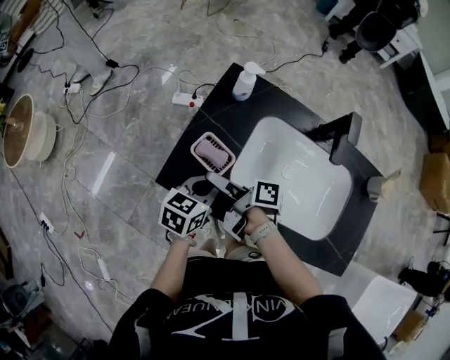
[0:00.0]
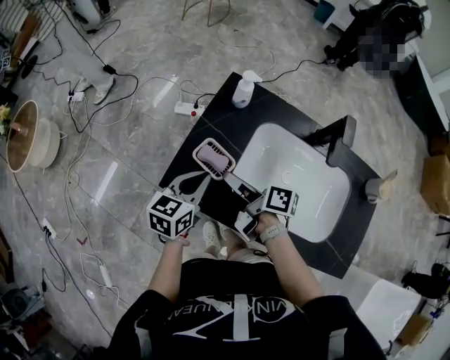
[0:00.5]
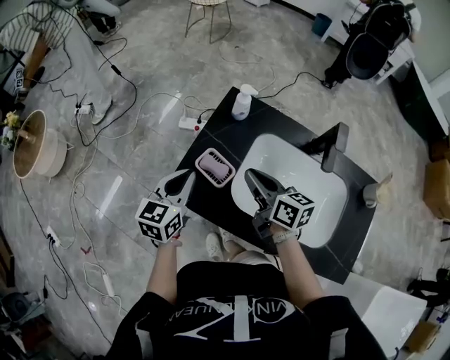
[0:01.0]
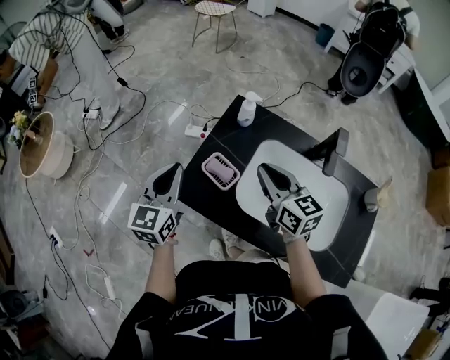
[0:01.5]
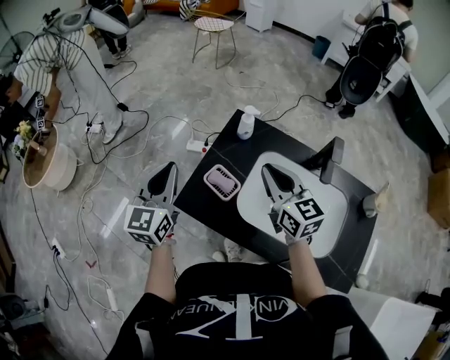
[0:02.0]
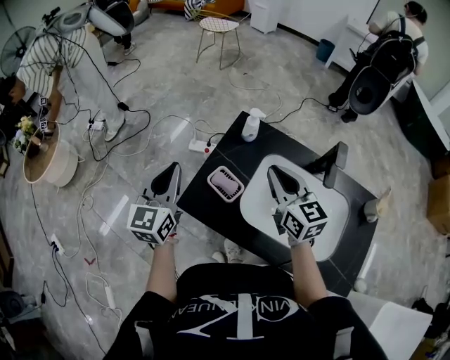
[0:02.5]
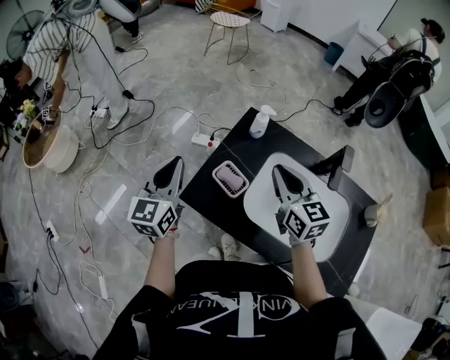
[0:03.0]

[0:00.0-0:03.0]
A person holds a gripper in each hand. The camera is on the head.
0:00.0 to 0:01.5: The right gripper moves upward and to the right, approximately 20 cm, twists approximately 80 degrees counterclockwise, seen from behind, and closes; the left gripper is displaced upward and to the left by approximately 20 cm, and rotates roughly 40 degrees.
0:01.5 to 0:03.0: The left gripper shifts by roughly 5 cm.

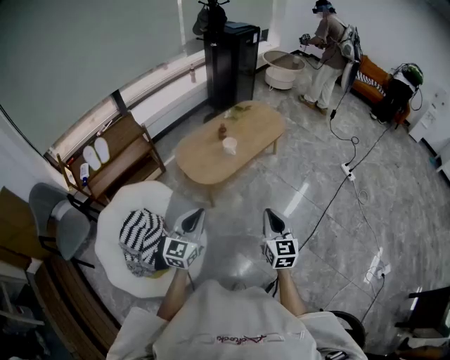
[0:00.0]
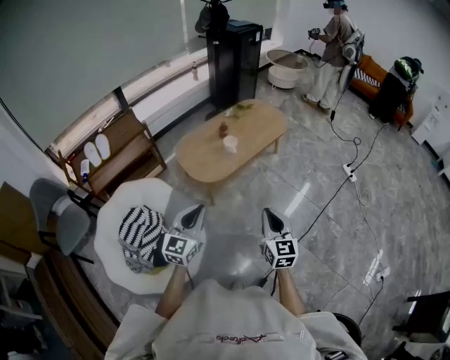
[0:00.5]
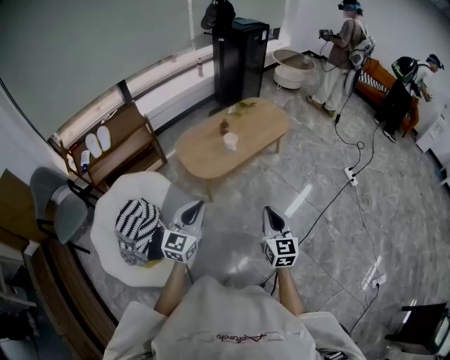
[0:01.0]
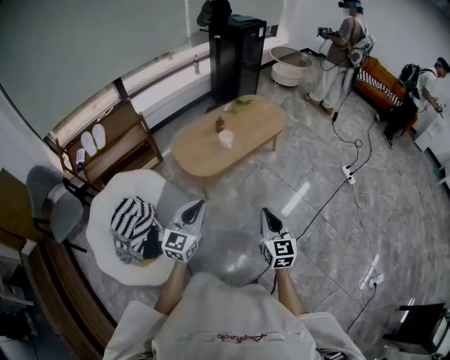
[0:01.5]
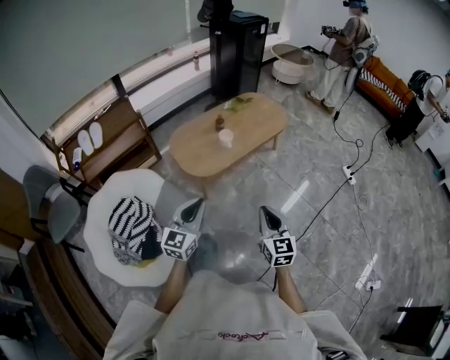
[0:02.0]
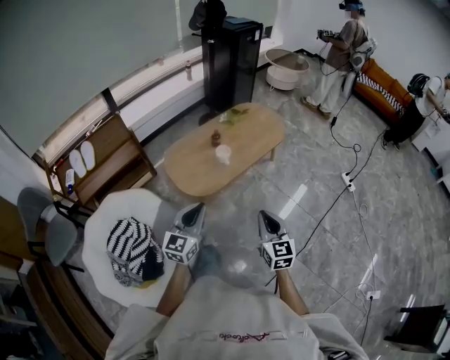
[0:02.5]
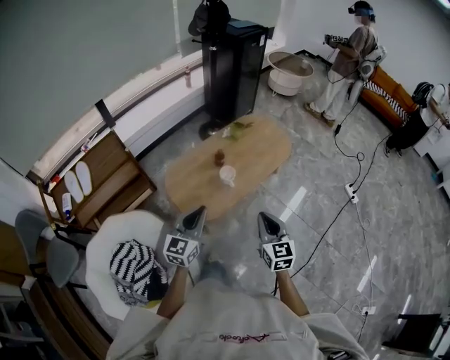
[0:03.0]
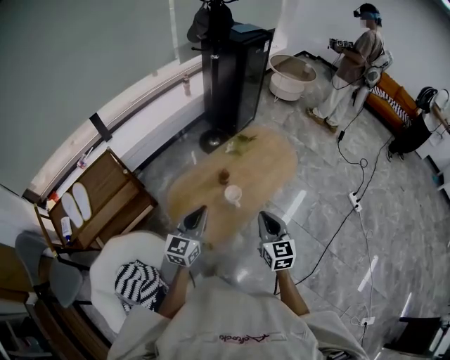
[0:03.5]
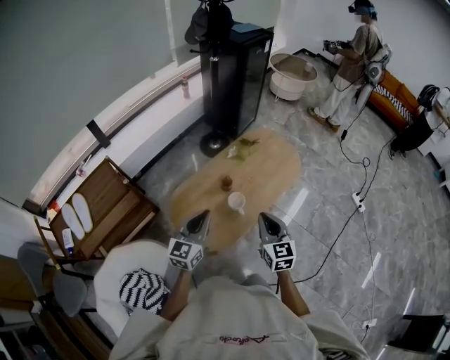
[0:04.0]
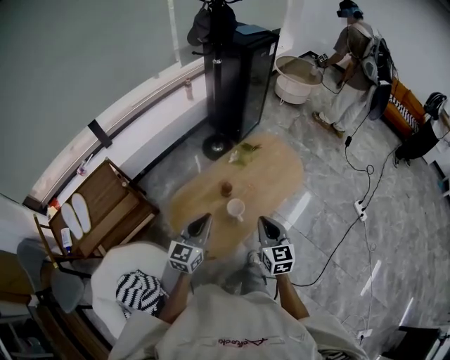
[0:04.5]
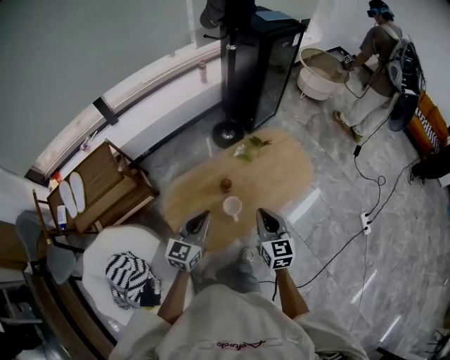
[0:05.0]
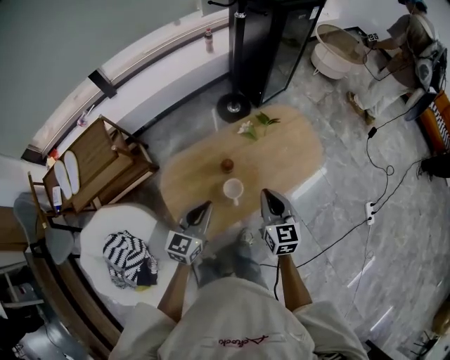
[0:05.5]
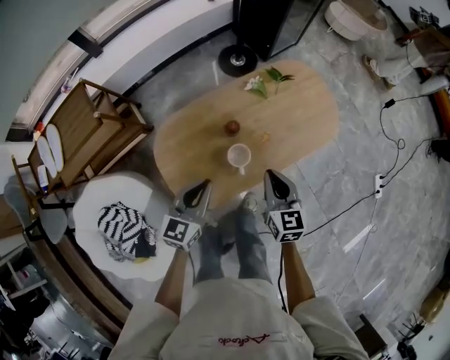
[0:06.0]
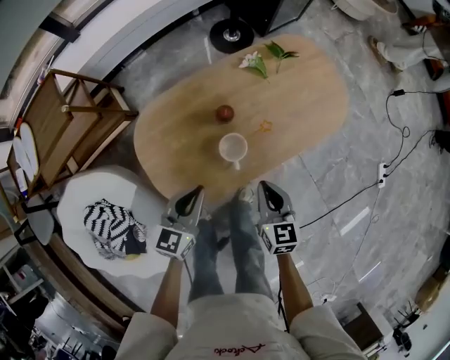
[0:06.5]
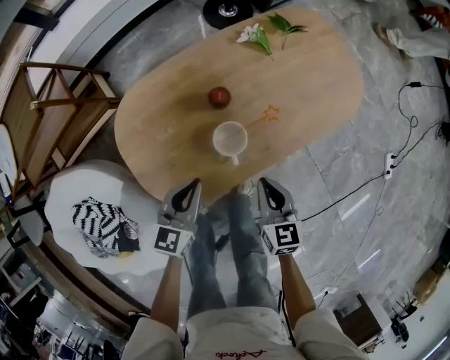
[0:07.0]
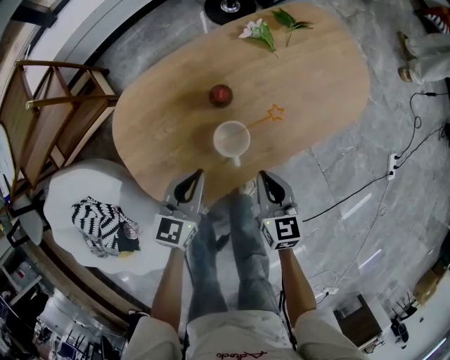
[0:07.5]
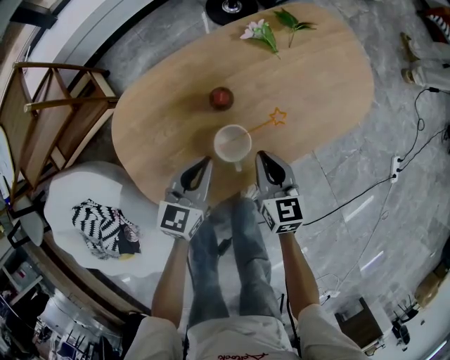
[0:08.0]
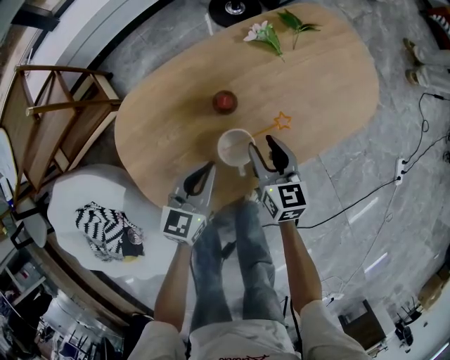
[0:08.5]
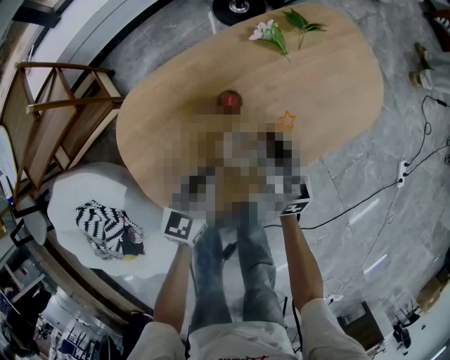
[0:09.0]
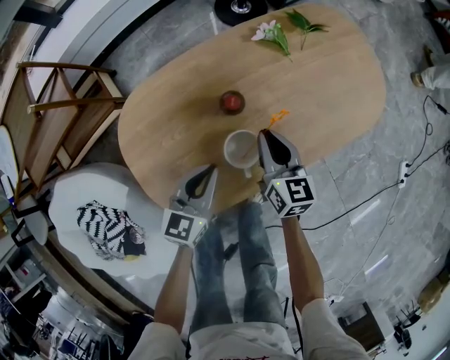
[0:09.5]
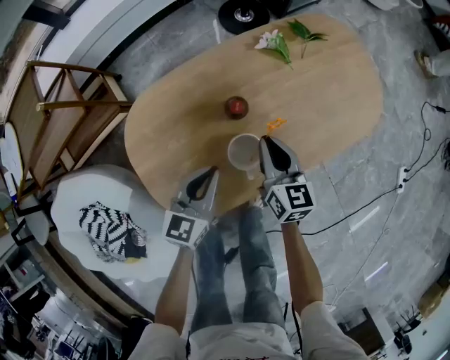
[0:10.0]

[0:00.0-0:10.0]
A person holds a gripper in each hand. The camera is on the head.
0:00.0 to 0:02.0: Both grippers travel together to the right, about 5 cm.
0:02.0 to 0:04.0: Both grippers are carried forward, approximately 50 cm.
0:04.0 to 0:06.0: The left gripper travels downward and forward by approximately 20 cm; the right gripper shifts roughly 25 cm forward and downward.
0:06.0 to 0:08.0: The grippers both shift downward by roughly 30 cm.
0:08.0 to 0:10.0: The right gripper travels forward by about 5 cm, and opens, then closes again.

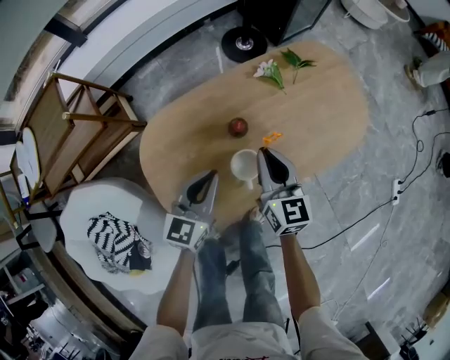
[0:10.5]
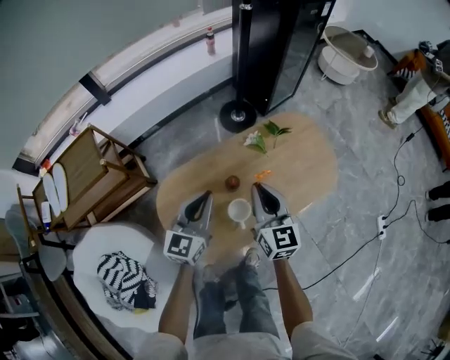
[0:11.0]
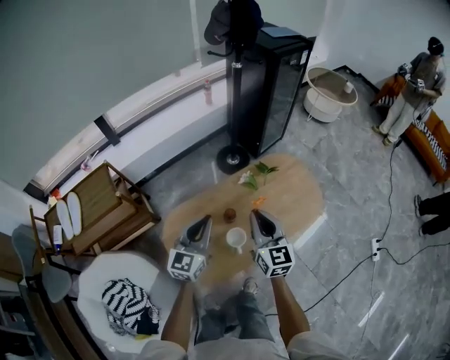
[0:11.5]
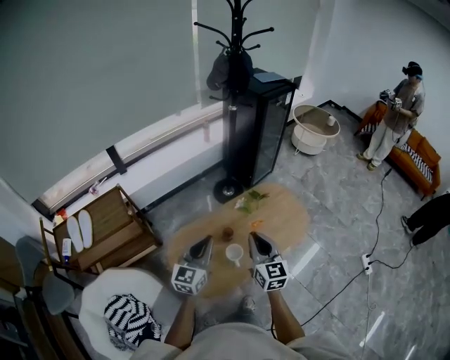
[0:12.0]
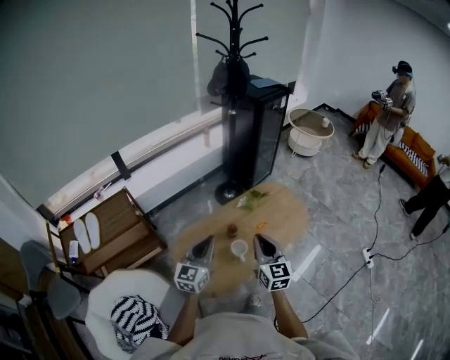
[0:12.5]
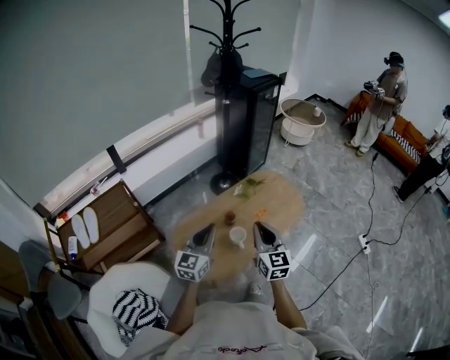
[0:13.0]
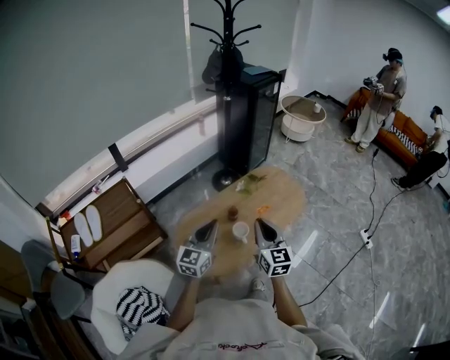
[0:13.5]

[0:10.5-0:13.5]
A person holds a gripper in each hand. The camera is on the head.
0:10.5 to 0:12.0: The left gripper moves upward, some 40 cm. Meanwhile the right gripper moves upward and backward, roughly 40 cm.
0:12.0 to 0:13.5: Both grippers move backward, about 10 cm.

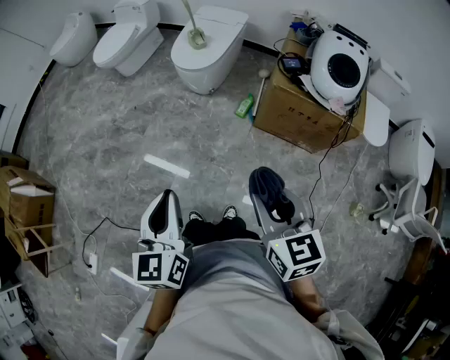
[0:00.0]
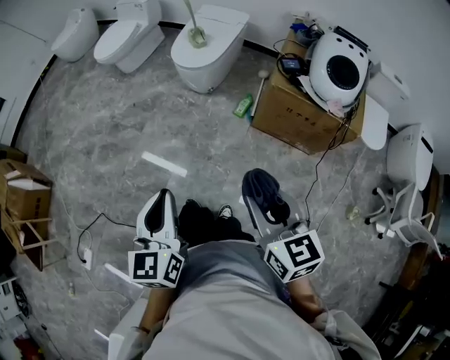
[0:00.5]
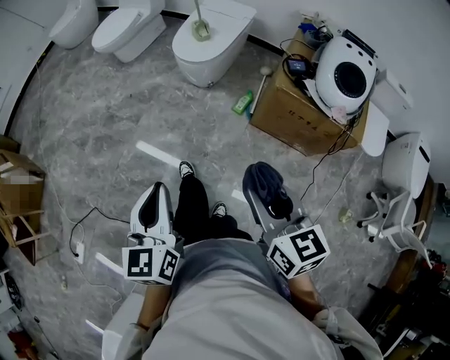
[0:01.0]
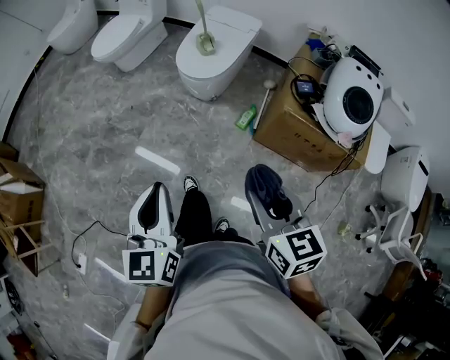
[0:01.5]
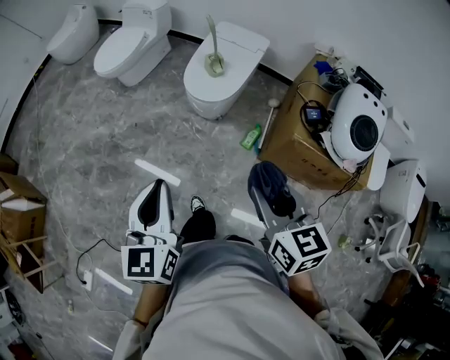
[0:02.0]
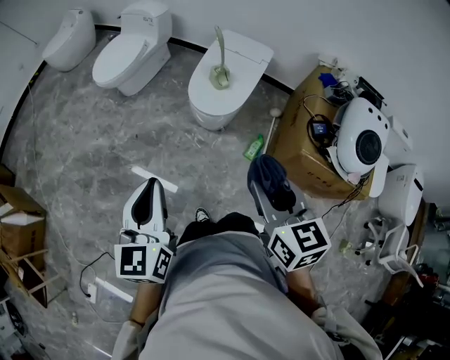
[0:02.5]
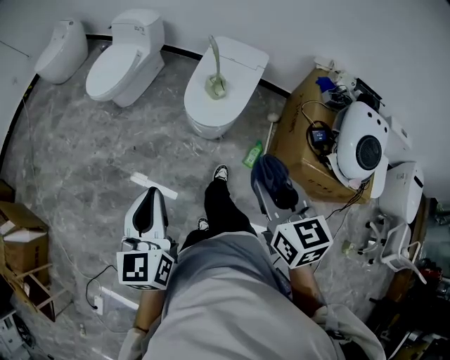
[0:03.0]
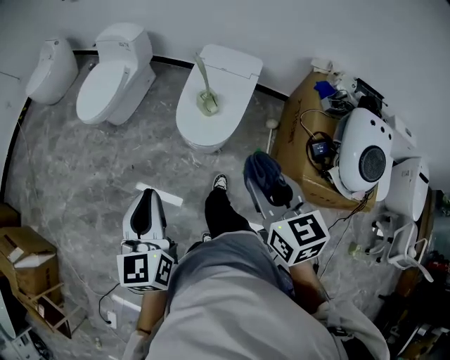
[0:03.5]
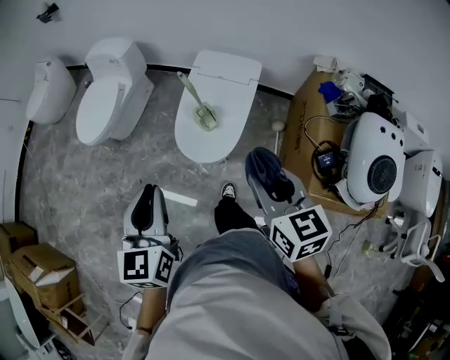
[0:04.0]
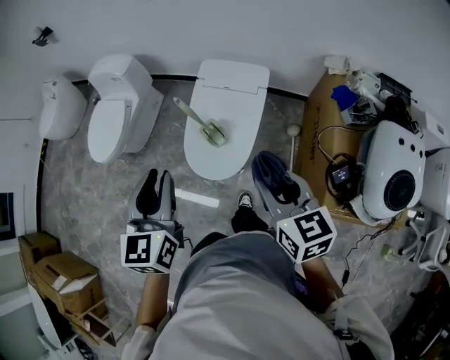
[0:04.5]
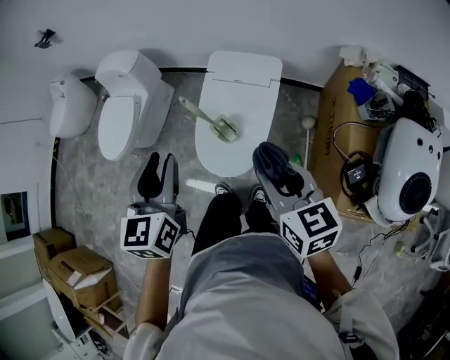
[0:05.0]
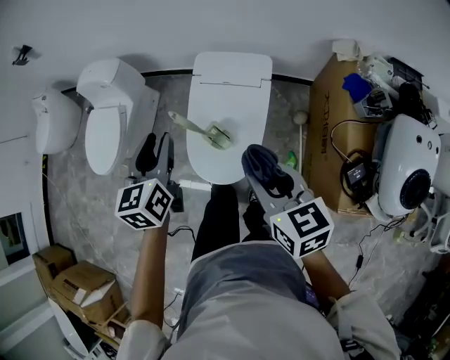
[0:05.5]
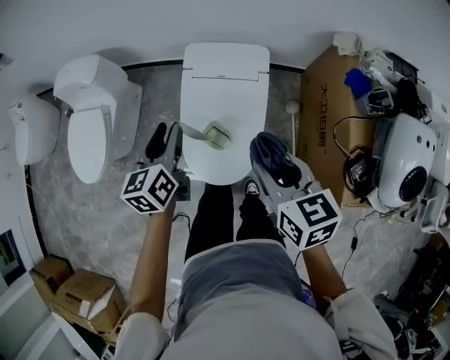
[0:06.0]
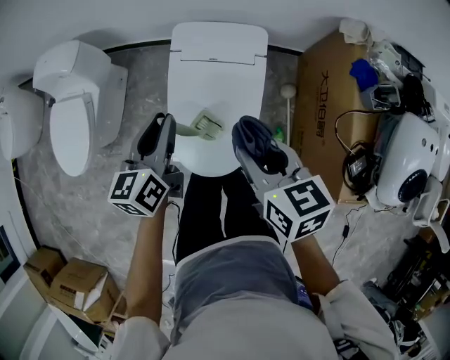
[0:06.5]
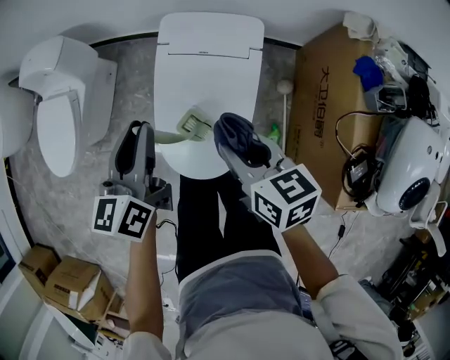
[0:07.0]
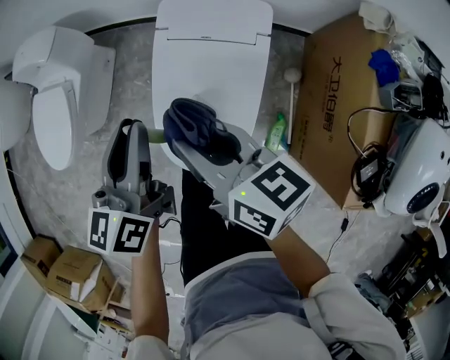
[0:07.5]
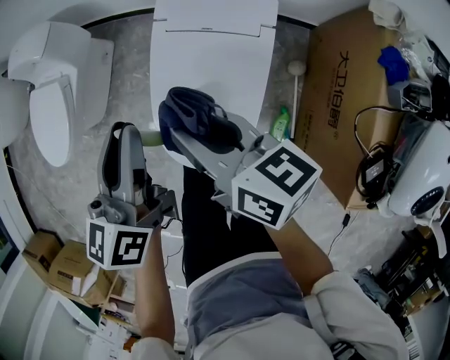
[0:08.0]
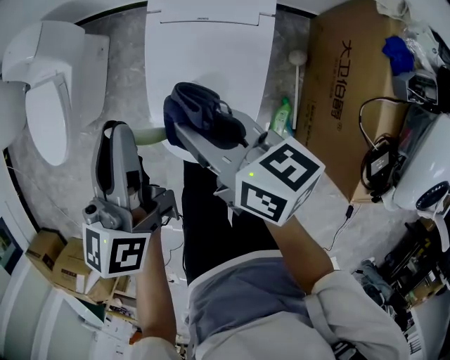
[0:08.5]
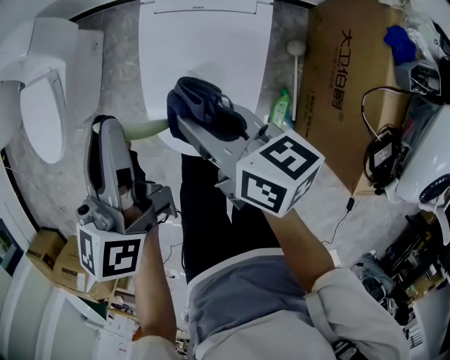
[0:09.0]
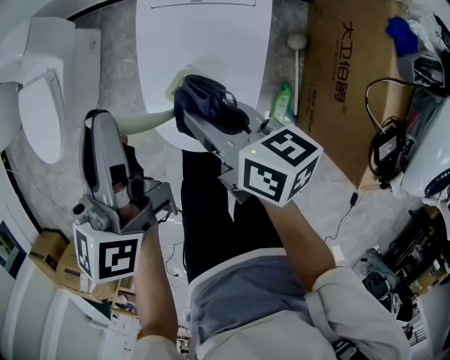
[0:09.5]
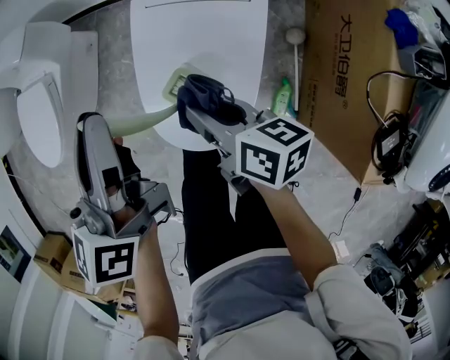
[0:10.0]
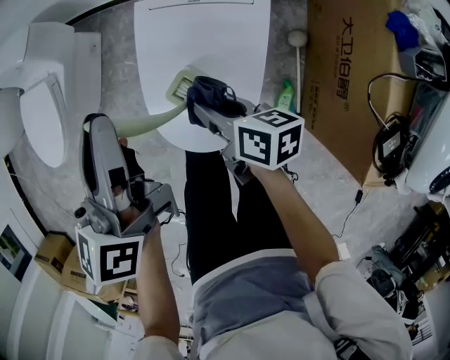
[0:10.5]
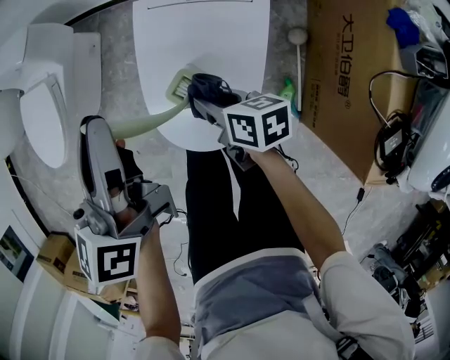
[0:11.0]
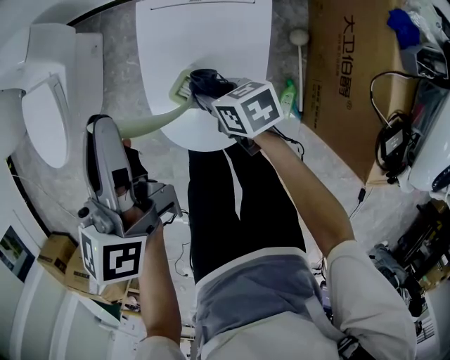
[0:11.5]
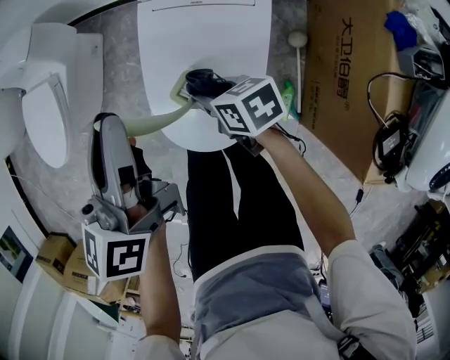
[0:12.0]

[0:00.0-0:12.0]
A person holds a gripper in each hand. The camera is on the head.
0:00.0 to 0:02.0: The grippers both shift forward by about 30 cm.
0:02.0 to 0:04.0: Both grippers travel together forward, some 40 cm.
0:04.0 to 0:06.0: The left gripper travels forward and downward by about 40 cm, and changes its angle by roughly 20 degrees. The right gripper shifts about 25 cm forward.
0:06.0 to 0:08.0: The right gripper shifts roughly 20 cm forward, downward and to the left, and swivels approximately 30 degrees.
0:08.0 to 0:10.0: The right gripper is displaced downward by roughly 15 cm.
0:10.0 to 0:12.0: The right gripper travels downward by approximately 10 cm, and turns by approximately 30 degrees.
